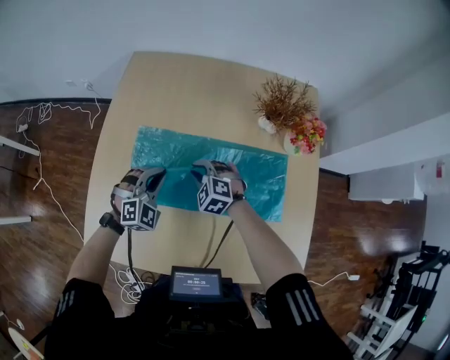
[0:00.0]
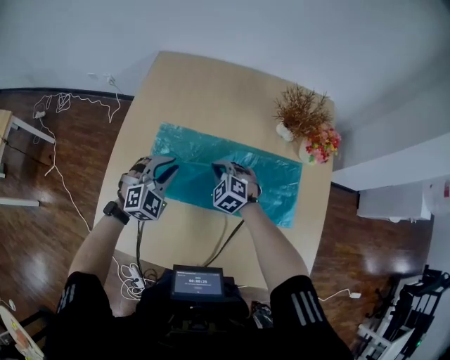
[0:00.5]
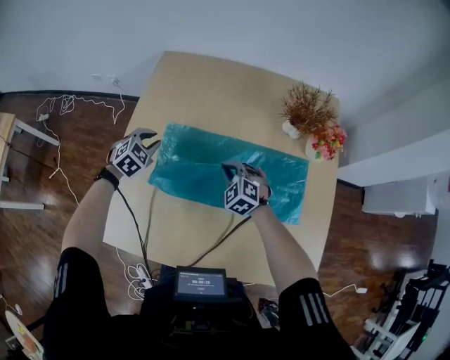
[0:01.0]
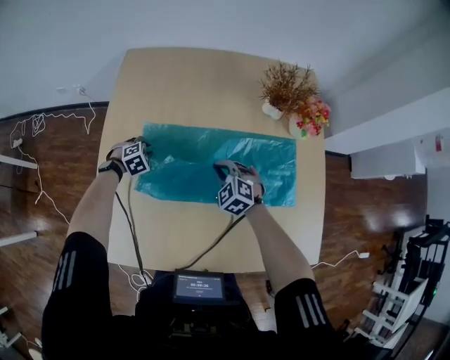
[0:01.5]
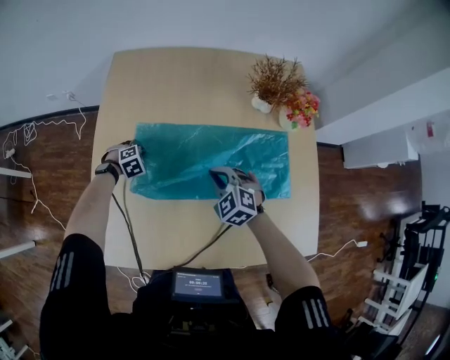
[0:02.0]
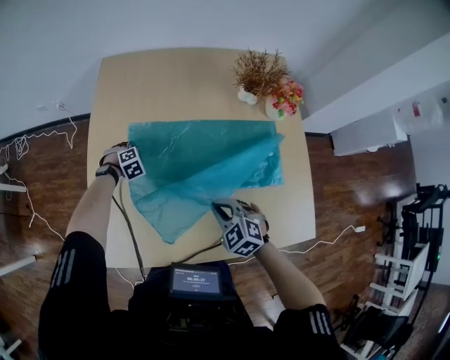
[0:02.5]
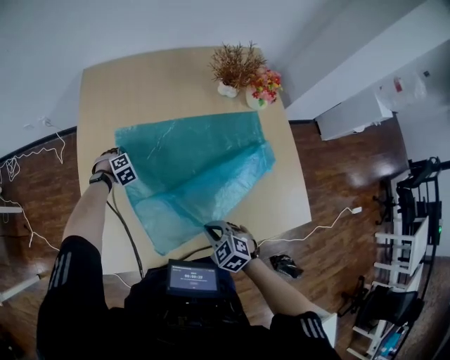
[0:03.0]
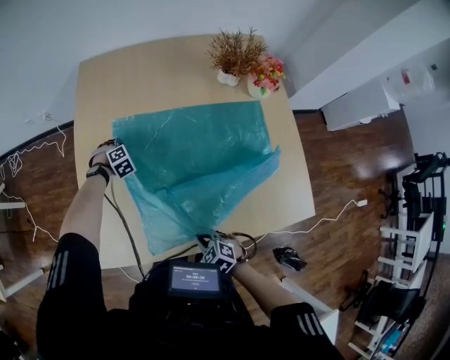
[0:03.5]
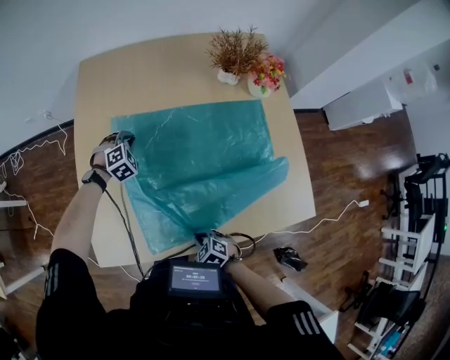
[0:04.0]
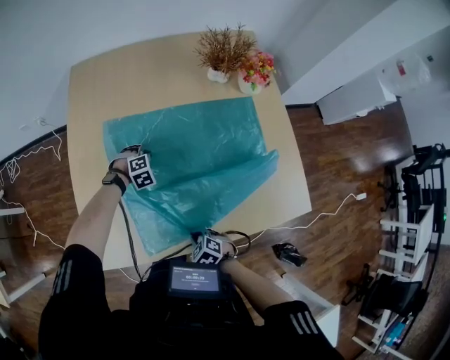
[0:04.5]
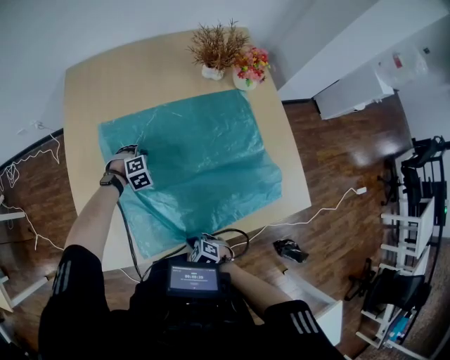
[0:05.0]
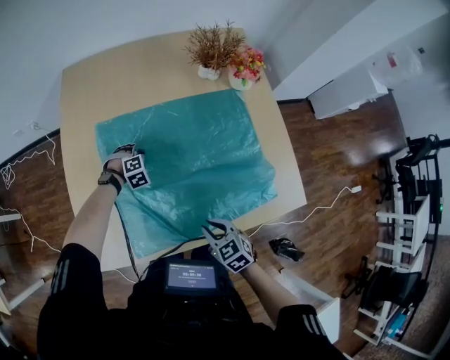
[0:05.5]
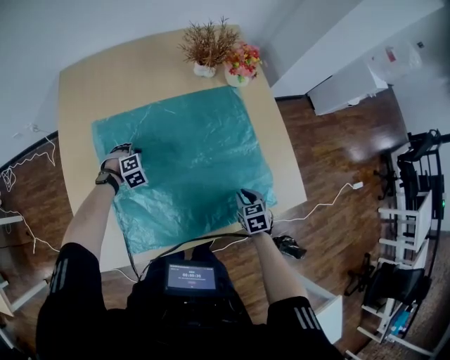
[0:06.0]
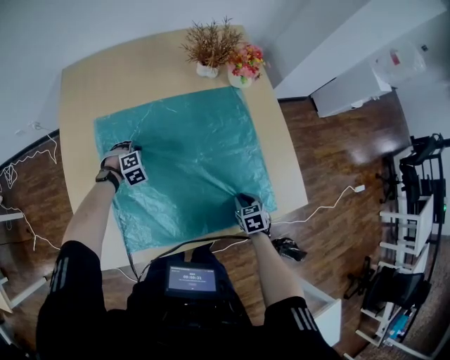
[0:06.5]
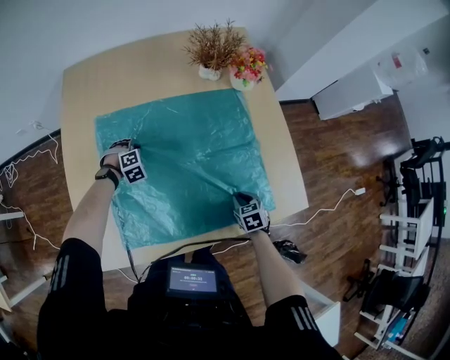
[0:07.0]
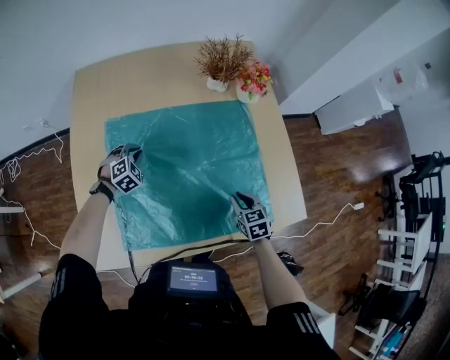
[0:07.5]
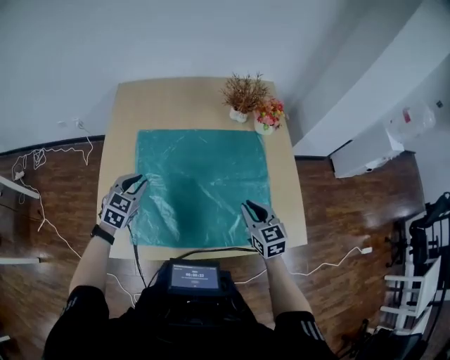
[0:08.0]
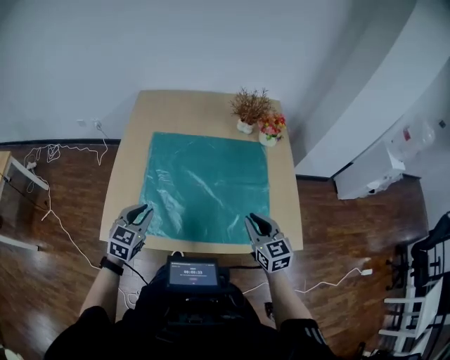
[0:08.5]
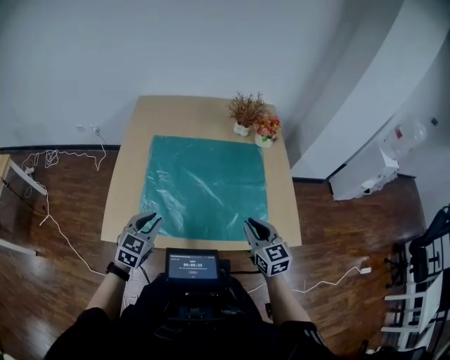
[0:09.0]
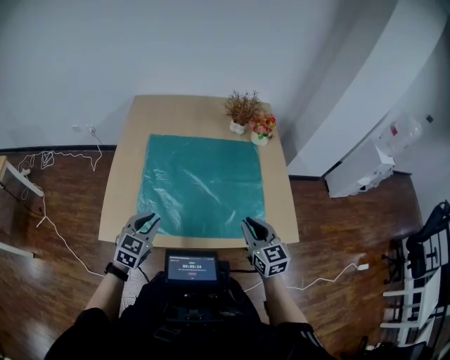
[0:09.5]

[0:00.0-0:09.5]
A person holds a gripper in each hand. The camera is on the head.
0:00.0 to 0:02.0: The left gripper is displaced downward by some 20 cm, and angles its fingers downward, by some 40 degrees, while the right gripper changes place by some 5 cm.
0:02.0 to 0:04.0: The left gripper travels upward by about 10 cm, and rotates roughly 20 degrees, while the right gripper moves roughly 35 cm, and swivels roughly 30 degrees.
0:04.0 to 0:05.5: The left gripper travels downward and backward by roughly 10 cm; the right gripper goes roughly 15 cm upward and to the right, and swivels roughly 30 degrees.
0:05.5 to 0:07.5: The left gripper is displaced upward by approximately 10 cm. Meanwhile the right gripper goes about 20 cm to the right and forward.
0:07.5 to 0:09.5: The left gripper goes roughly 40 cm backward and upward, and swivels about 50 degrees, while the right gripper travels upward and backward by some 25 cm, and angles its fingers upward, by roughly 30 degrees.

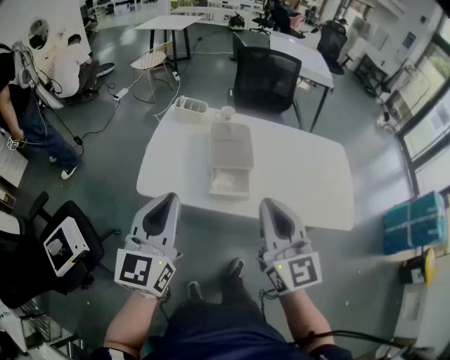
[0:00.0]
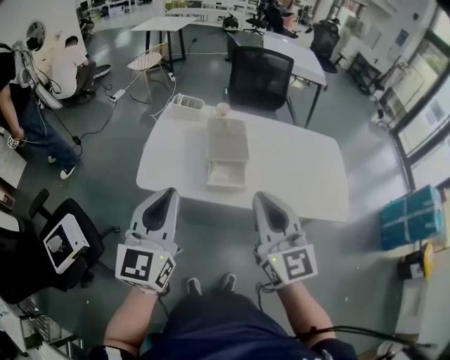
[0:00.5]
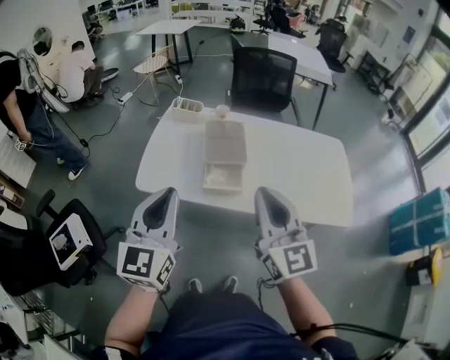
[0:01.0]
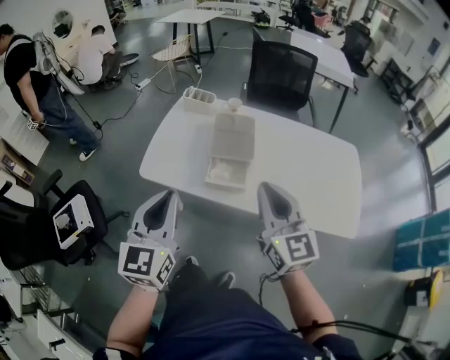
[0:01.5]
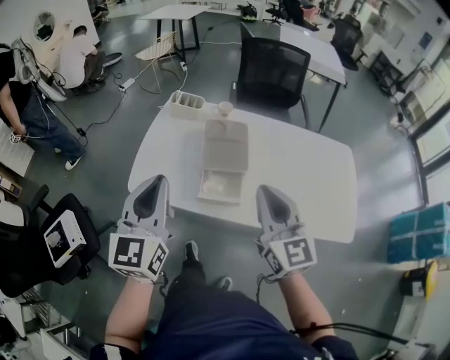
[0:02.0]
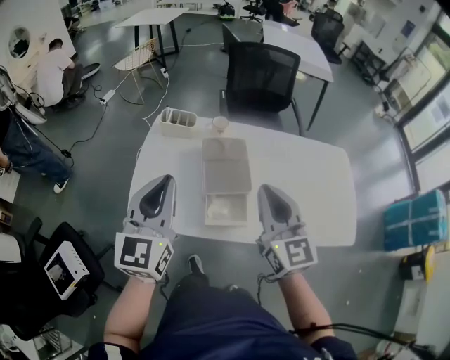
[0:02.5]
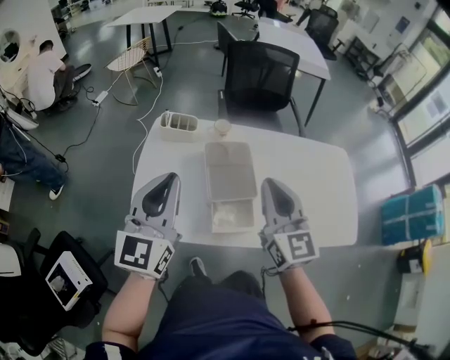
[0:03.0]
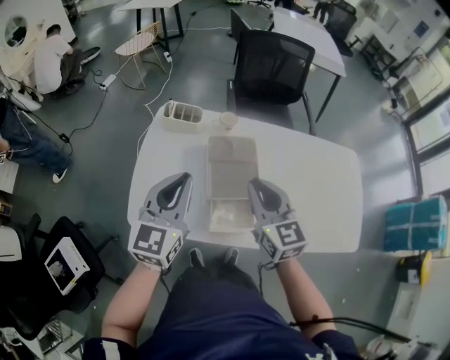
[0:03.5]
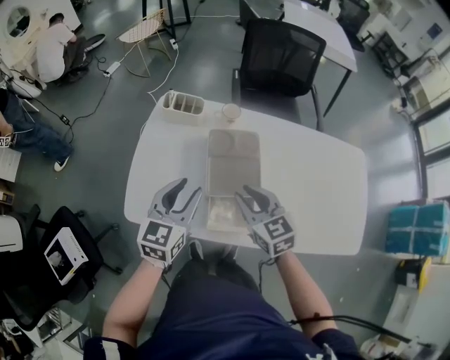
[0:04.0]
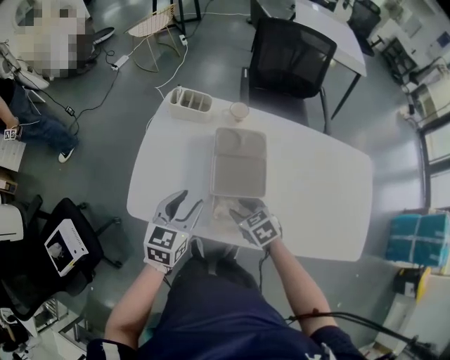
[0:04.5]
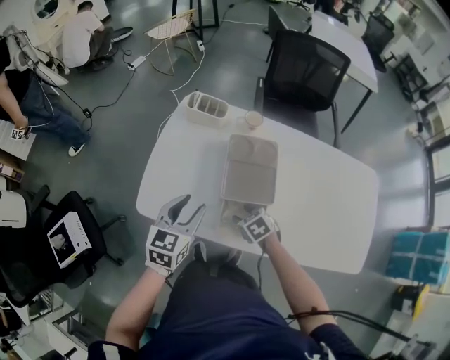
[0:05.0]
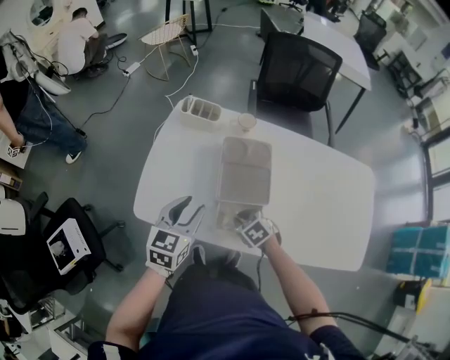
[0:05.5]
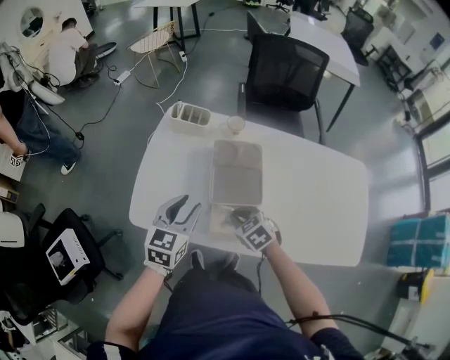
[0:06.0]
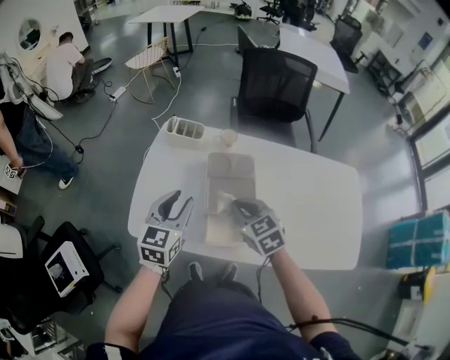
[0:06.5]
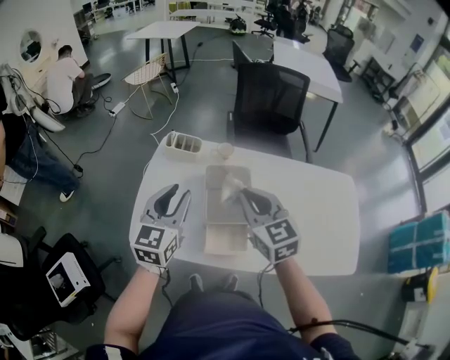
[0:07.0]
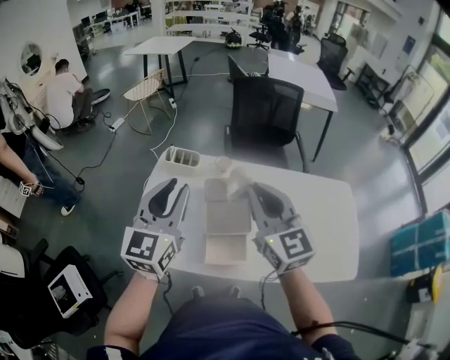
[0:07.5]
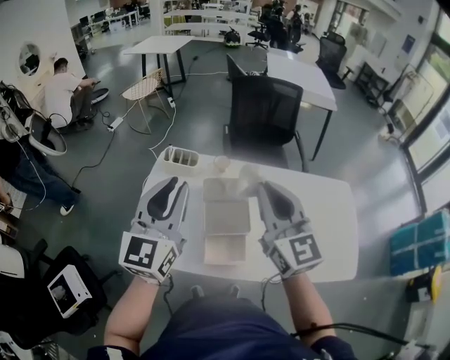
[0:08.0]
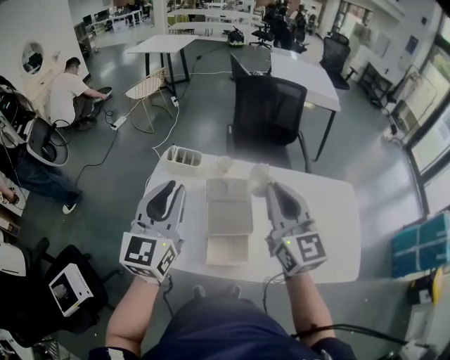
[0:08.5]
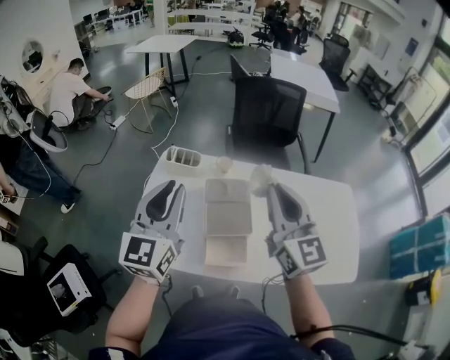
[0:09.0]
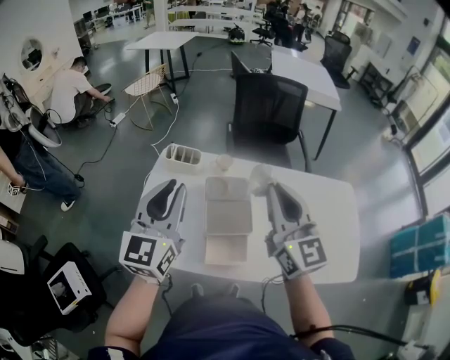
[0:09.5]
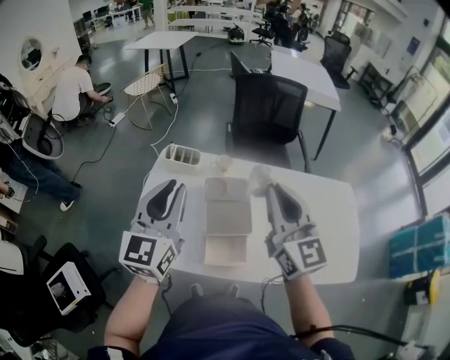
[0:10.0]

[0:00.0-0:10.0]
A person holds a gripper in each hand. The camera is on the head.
0:00.0 to 0:02.0: The right gripper is displaced forward and to the right by about 10 cm. Meanwhile the left gripper goes some 10 cm forward.
0:02.0 to 0:04.0: The left gripper shifts some 25 cm forward and downward, swivels about 20 degrees, and opens, while the right gripper moves forward, downward and to the left, some 25 cm, swivels about 30 degrees, and opens up.
0:04.0 to 0:06.0: The right gripper shifts roughly 10 cm downward, turns by about 30 degrees, and opens and closes again.
0:06.0 to 0:08.0: The two grippers go approximately 30 cm upward. The left gripper changes its angle by some 30 degrees; the right gripper tilts its fingers about 60 degrees upward.
0:08.0 to 0:10.0: There are only small adjustments of the grippers.

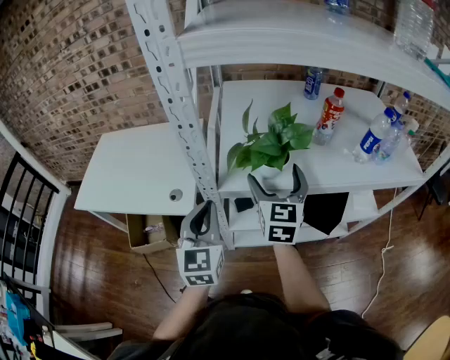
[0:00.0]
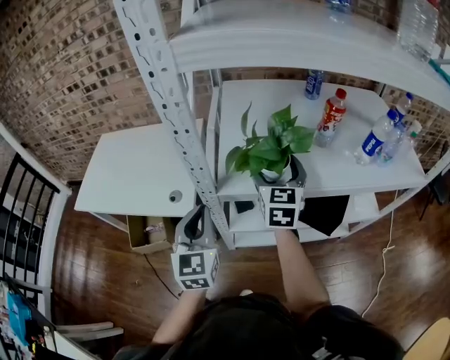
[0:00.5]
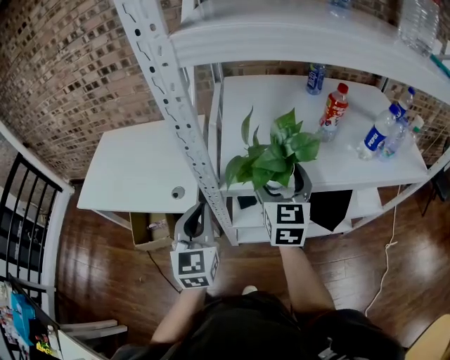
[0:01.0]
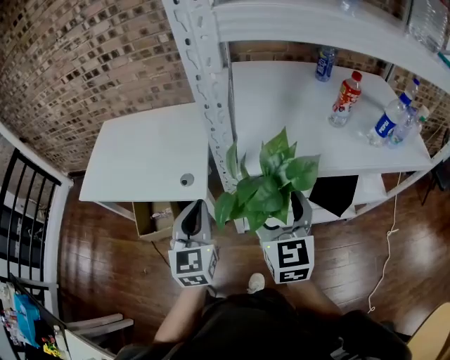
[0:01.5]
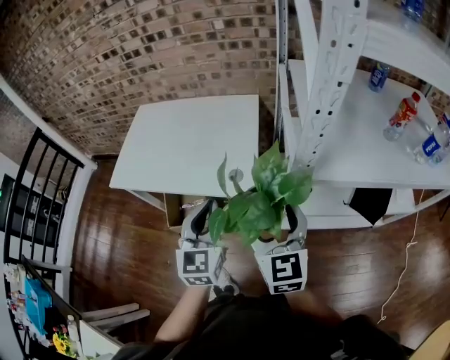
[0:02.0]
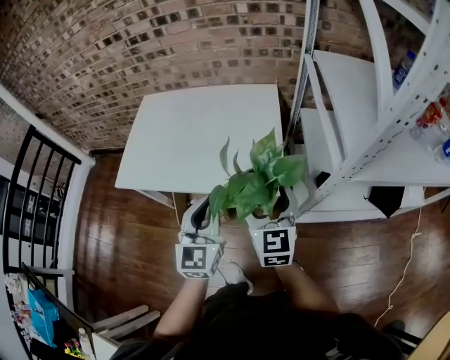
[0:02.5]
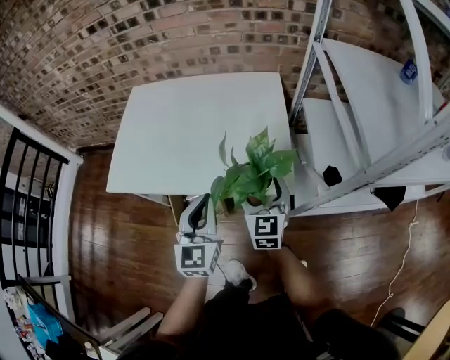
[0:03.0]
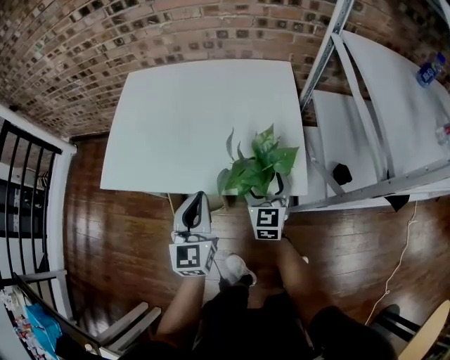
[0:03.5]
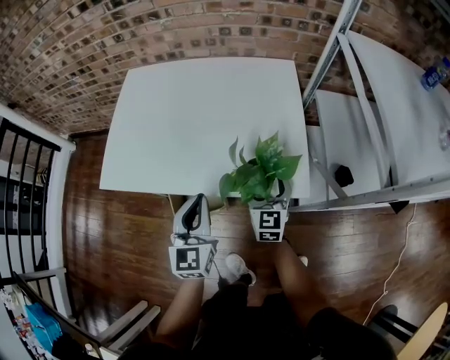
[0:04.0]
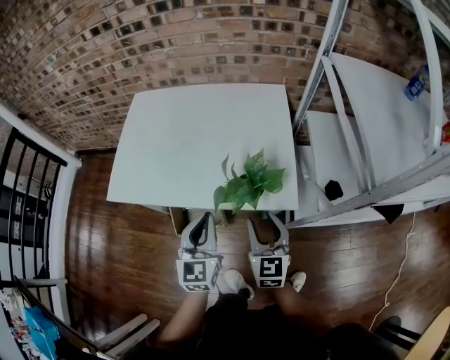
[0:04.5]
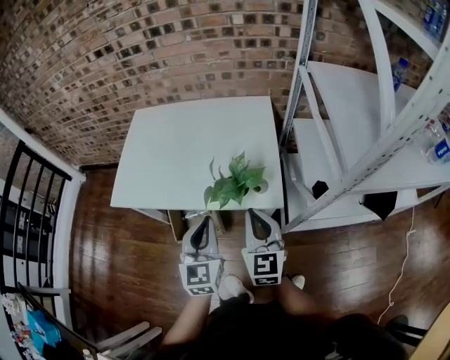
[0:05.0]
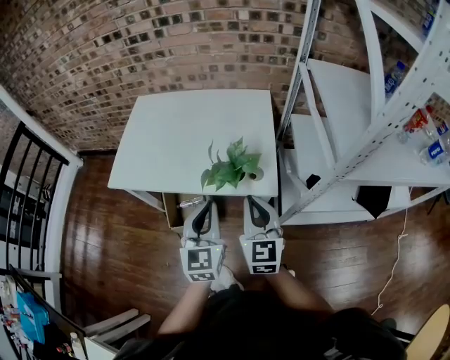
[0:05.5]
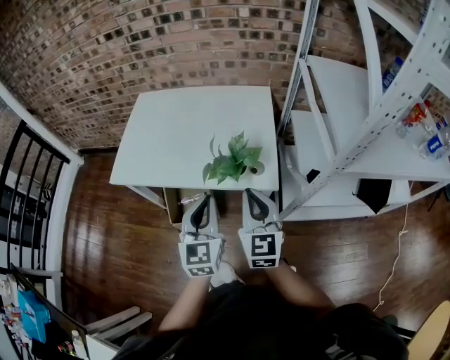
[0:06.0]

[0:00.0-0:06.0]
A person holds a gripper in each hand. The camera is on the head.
0:00.0 to 0:02.0: Both grippers travel together to the left, some 25 cm. The right gripper turns by approximately 20 degrees.
0:02.0 to 0:04.0: The right gripper goes roughly 40 cm downward, forward and to the left. Meanwhile the left gripper goes roughly 30 cm to the left, downward and forward.
0:04.0 to 0:06.0: The left gripper goes approximately 15 cm backward, upward and to the right, while the right gripper travels upward and backward by some 25 cm, and closes.

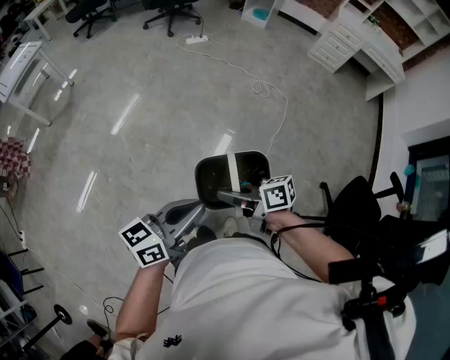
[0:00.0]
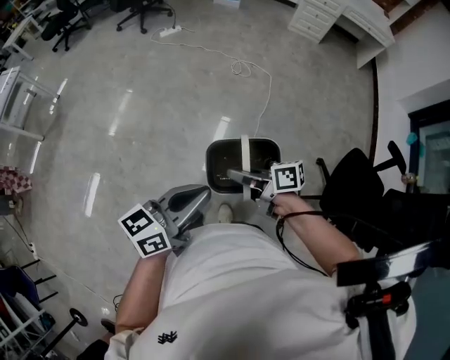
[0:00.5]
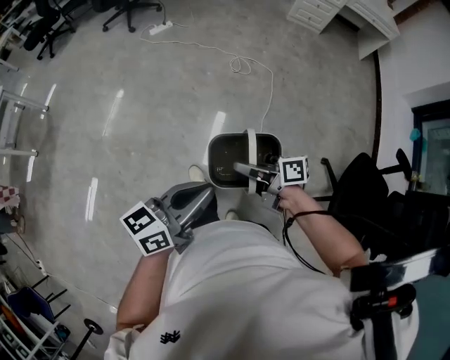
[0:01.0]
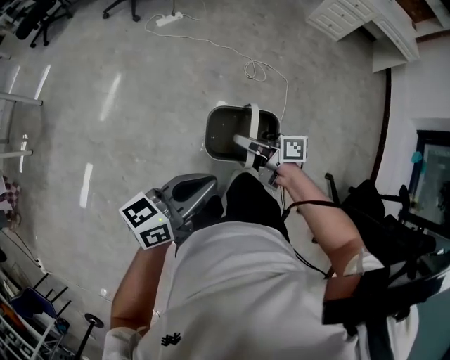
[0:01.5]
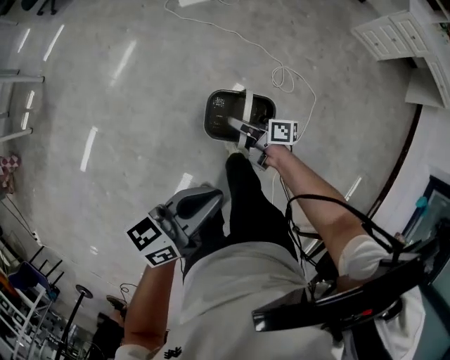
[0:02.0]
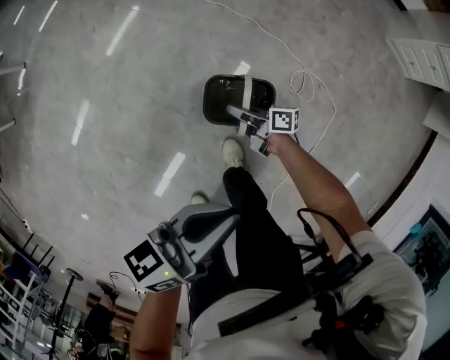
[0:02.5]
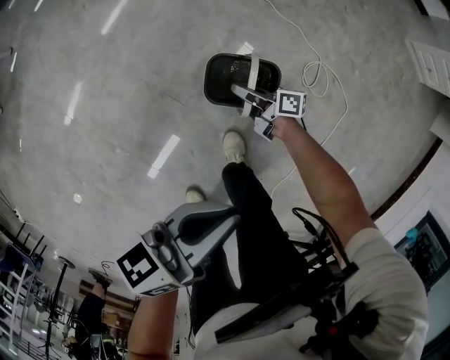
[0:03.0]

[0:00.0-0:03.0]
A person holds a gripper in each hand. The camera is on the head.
0:00.0 to 0:01.5: The left gripper changes place by some 35 cm. Meanwhile the right gripper changes place by approximately 40 cm.
0:01.5 to 0:03.0: Both grippers are carried forward, approximately 40 cm. The left gripper moves downward, some 25 cm, and turns by about 30 degrees; the right gripper shifts about 50 cm downward.
